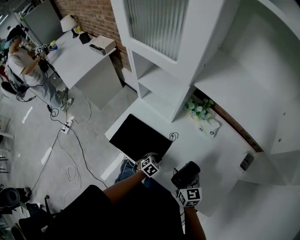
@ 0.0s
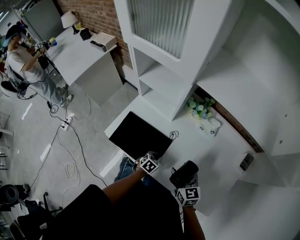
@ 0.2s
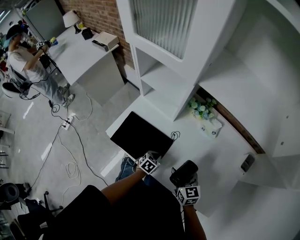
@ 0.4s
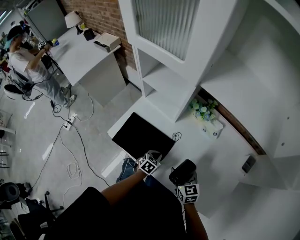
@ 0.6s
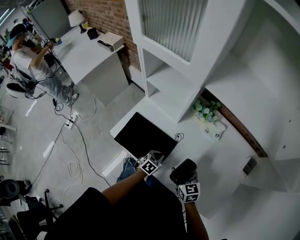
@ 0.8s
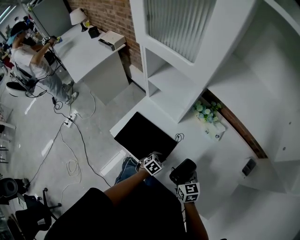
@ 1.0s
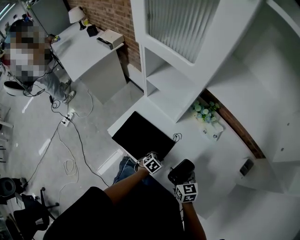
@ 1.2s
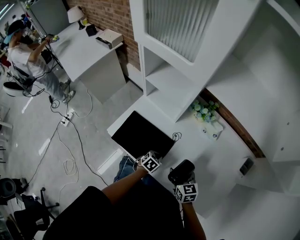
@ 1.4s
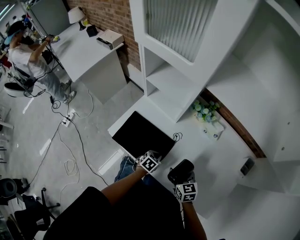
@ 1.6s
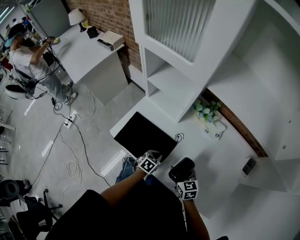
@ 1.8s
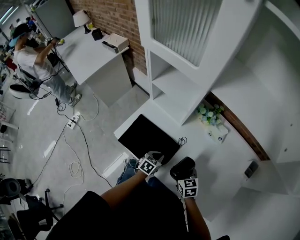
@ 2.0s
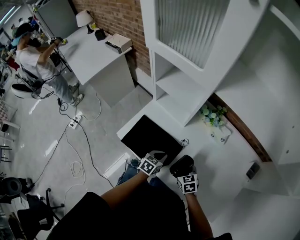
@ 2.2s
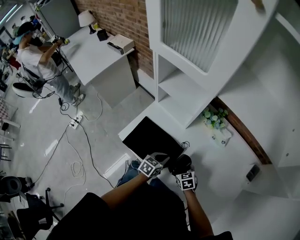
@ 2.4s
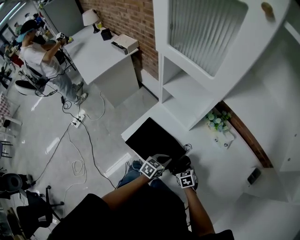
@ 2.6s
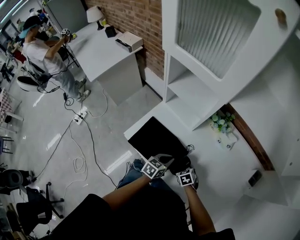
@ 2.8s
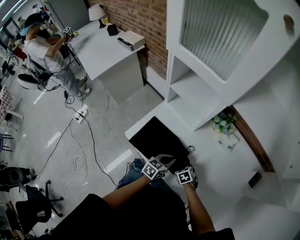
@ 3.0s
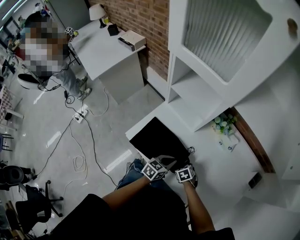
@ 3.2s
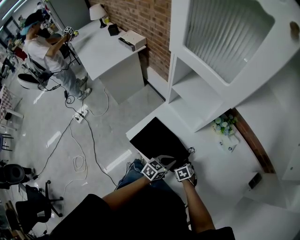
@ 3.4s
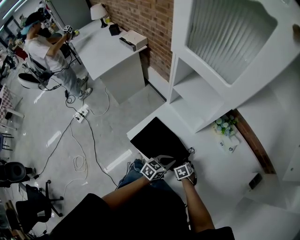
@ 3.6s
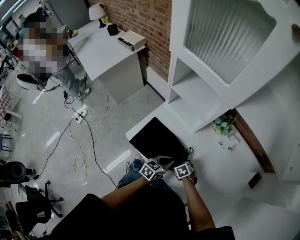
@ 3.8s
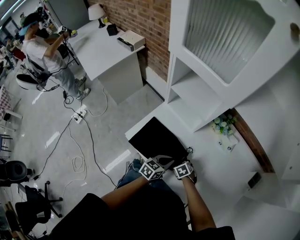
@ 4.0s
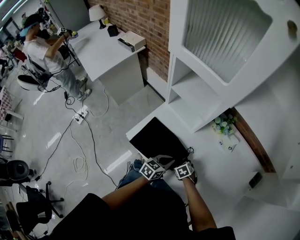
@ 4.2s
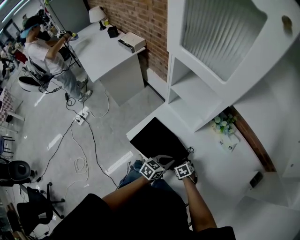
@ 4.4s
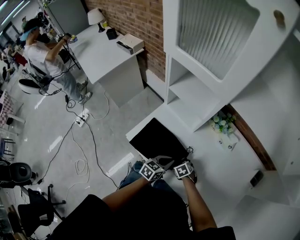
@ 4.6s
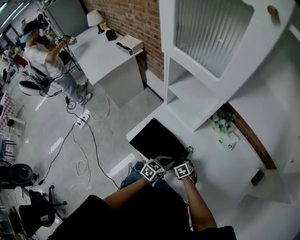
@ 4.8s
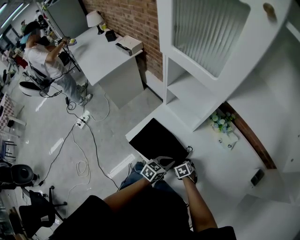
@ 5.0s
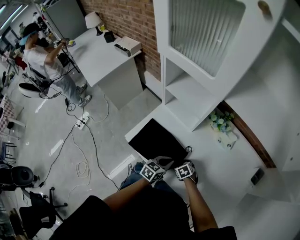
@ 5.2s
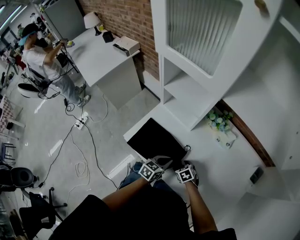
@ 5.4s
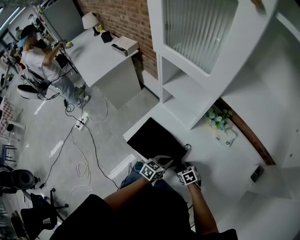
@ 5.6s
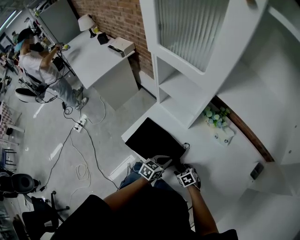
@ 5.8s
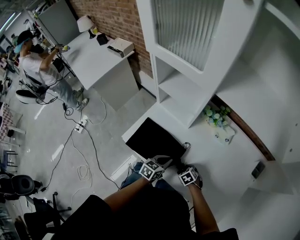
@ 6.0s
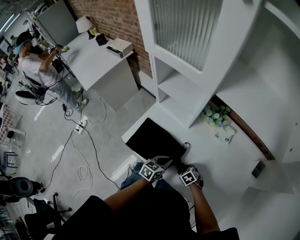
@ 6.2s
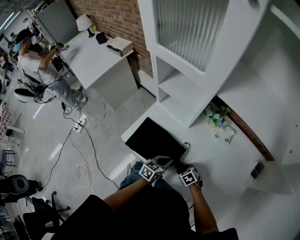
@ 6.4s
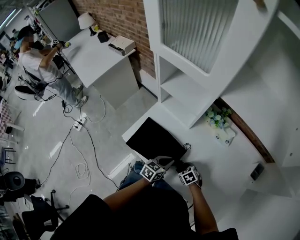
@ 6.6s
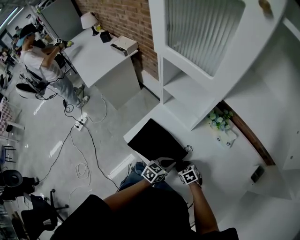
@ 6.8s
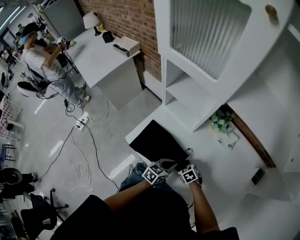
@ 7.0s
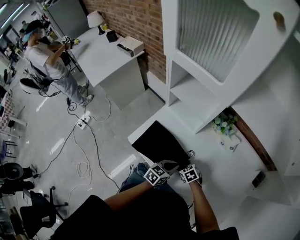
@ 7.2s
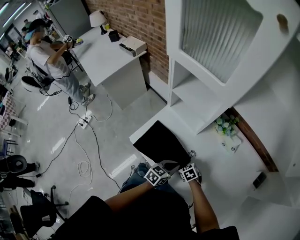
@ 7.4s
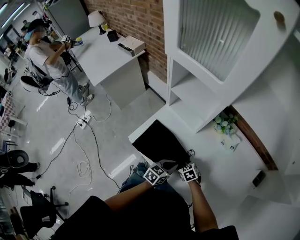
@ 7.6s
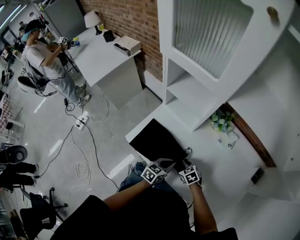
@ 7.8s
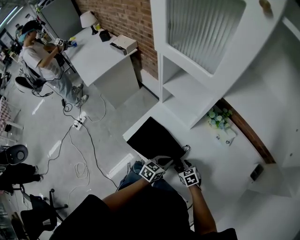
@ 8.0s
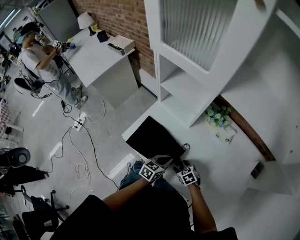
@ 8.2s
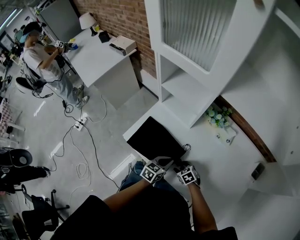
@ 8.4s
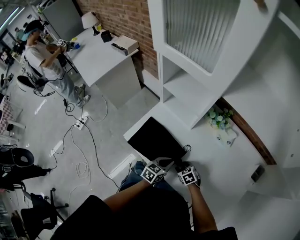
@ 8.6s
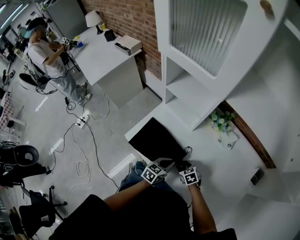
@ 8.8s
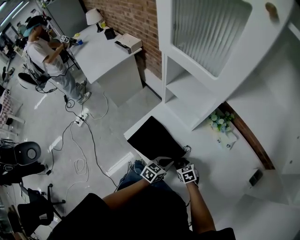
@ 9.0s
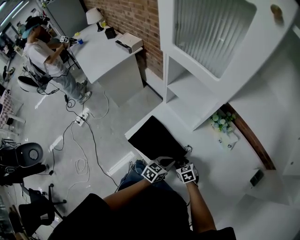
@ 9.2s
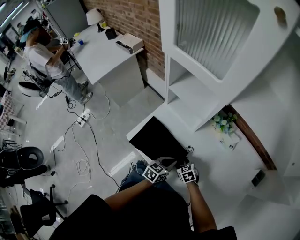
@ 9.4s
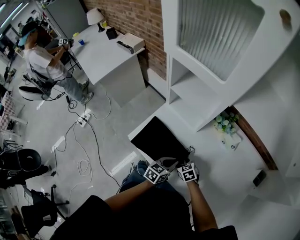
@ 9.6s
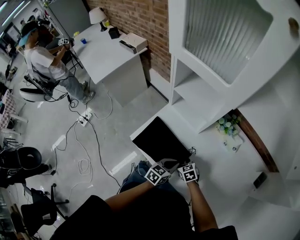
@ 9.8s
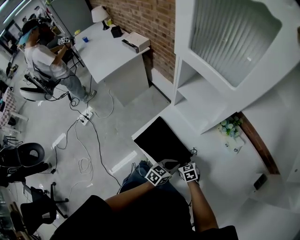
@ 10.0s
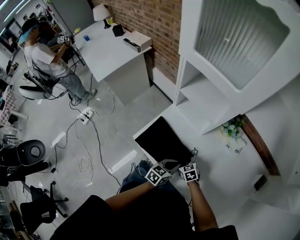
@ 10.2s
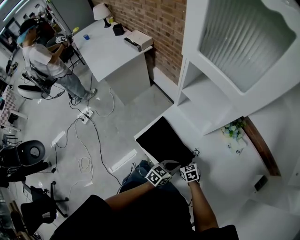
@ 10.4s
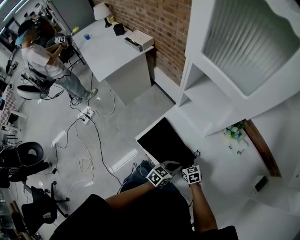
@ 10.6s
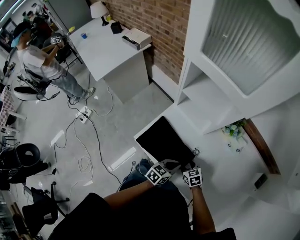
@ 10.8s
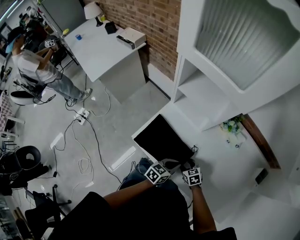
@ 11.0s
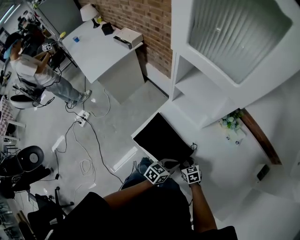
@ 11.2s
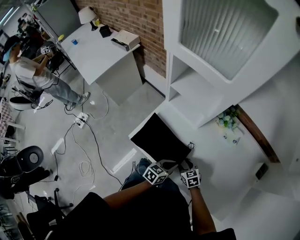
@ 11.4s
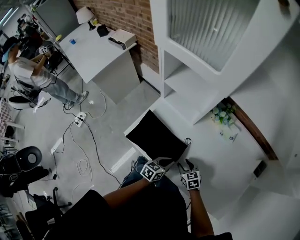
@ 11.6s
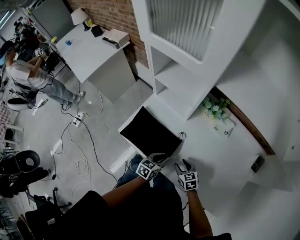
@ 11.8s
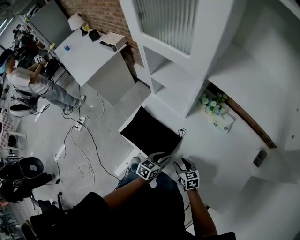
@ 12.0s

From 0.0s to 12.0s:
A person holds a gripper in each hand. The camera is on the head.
From 0.0s to 1.6s: The left gripper closes its fingers, while the right gripper travels downward by roughly 5 cm.
From 1.6s to 3.0s: The right gripper is displaced downward by roughly 15 cm, and tips its fingers downward by some 30 degrees. The left gripper goes some 10 cm upward, and changes its angle by some 30 degrees.
From 3.0s to 4.4s: The grippers move only a little.
From 4.4s to 6.0s: The right gripper travels backward and to the right by roughly 5 cm.
From 6.0s to 7.6s: The right gripper travels forward and to the left by approximately 10 cm.
From 7.6s to 9.0s: There are only small adjustments of the grippers.
From 9.0s to 10.4s: The right gripper heads to the left, covering about 5 cm.
From 10.4s to 12.0s: The left gripper moves about 5 cm, and opens its fingers. The right gripper heads to the right, backward and upward, covering about 15 cm, and changes its angle by roughly 20 degrees.

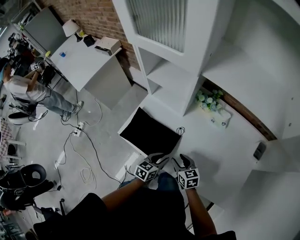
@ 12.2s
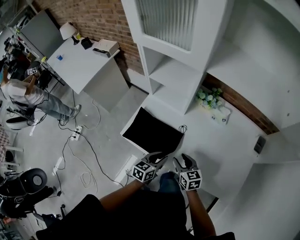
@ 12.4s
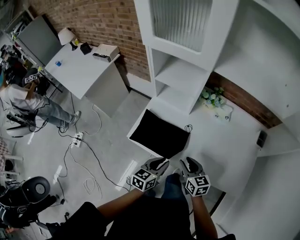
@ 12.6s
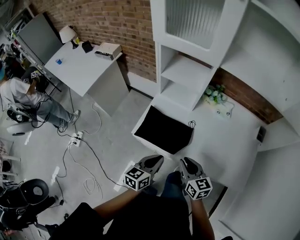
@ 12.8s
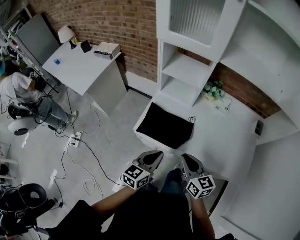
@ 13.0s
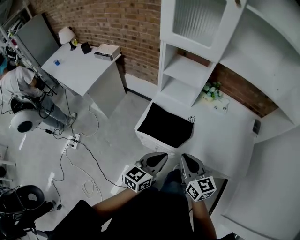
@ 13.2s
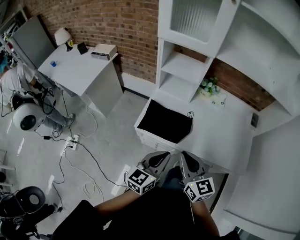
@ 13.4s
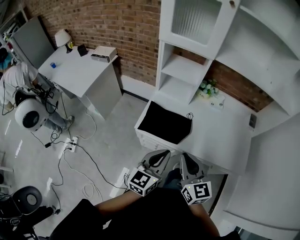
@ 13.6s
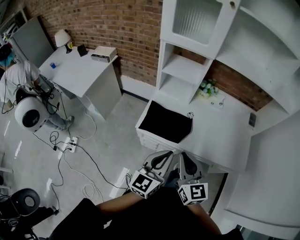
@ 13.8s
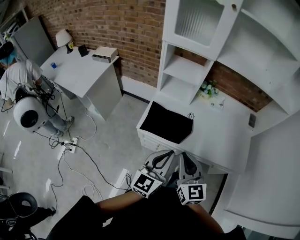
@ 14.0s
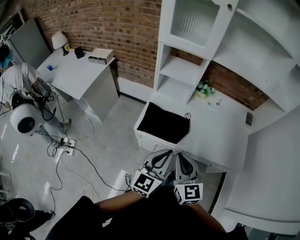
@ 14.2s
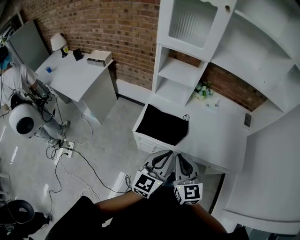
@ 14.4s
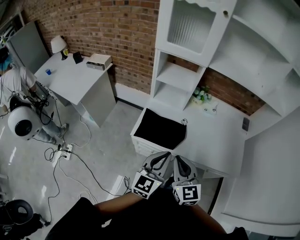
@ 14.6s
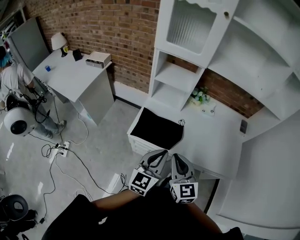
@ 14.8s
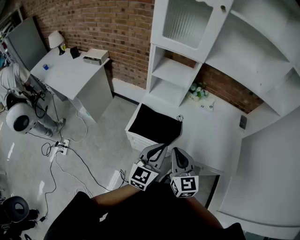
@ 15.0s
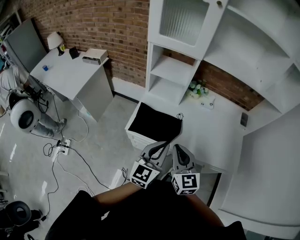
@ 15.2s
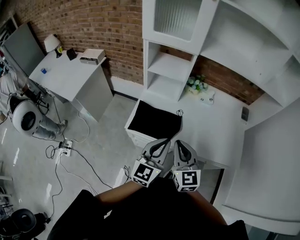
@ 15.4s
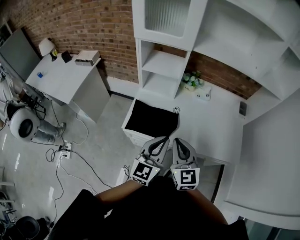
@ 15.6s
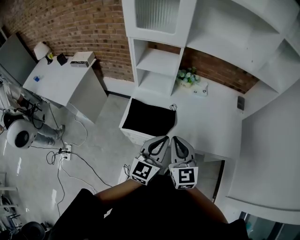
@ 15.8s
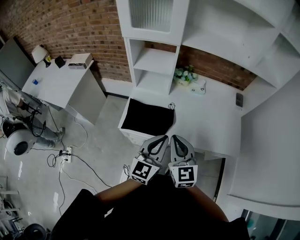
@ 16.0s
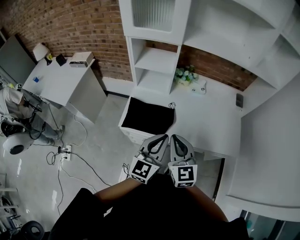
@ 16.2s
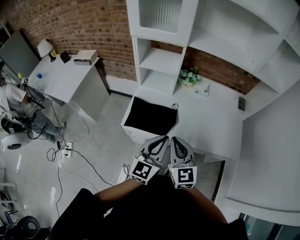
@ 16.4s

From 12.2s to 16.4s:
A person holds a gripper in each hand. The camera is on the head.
From 12.2s to 13.6s: The two grippers go about 35 cm upward, backward and to the left. The right gripper rotates roughly 40 degrees, and closes its fingers, while the left gripper swivels roughly 30 degrees, and closes up.
From 13.6s to 15.0s: There are only small adjustments of the grippers.
From 15.0s to 16.4s: The left gripper changes place by roughly 5 cm.

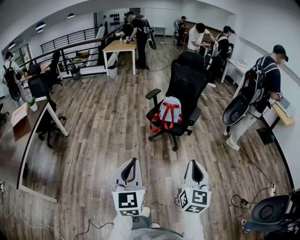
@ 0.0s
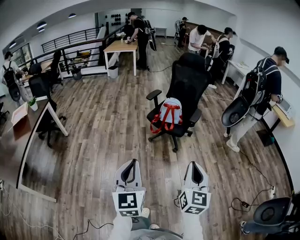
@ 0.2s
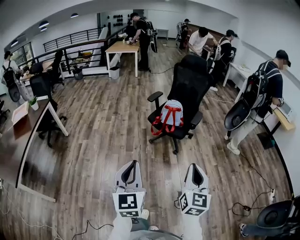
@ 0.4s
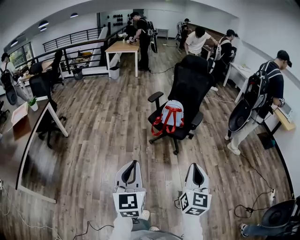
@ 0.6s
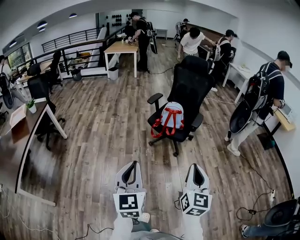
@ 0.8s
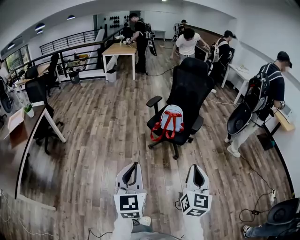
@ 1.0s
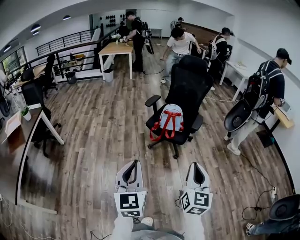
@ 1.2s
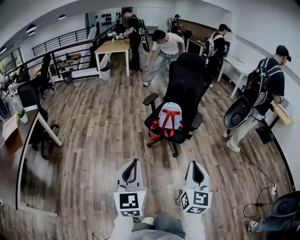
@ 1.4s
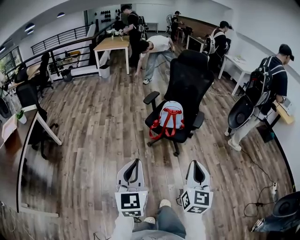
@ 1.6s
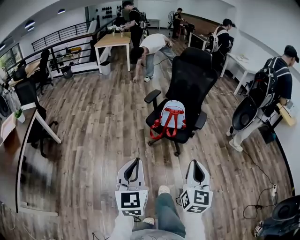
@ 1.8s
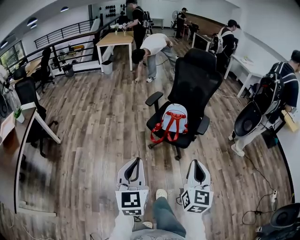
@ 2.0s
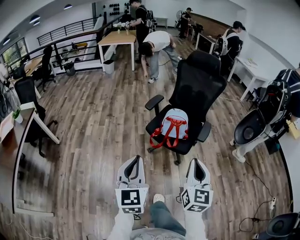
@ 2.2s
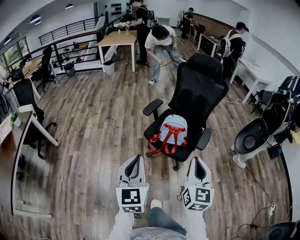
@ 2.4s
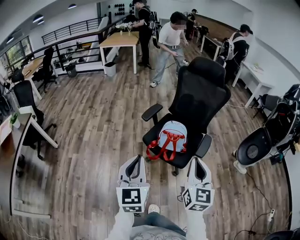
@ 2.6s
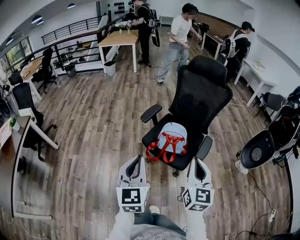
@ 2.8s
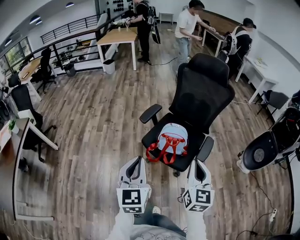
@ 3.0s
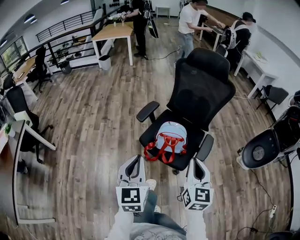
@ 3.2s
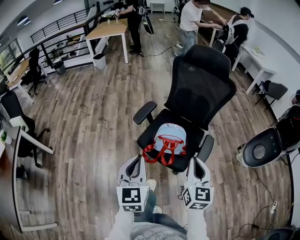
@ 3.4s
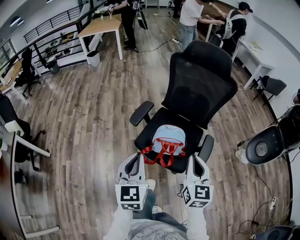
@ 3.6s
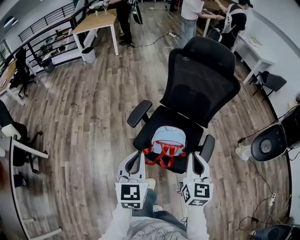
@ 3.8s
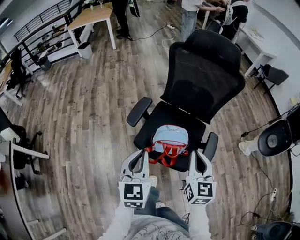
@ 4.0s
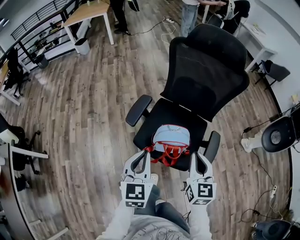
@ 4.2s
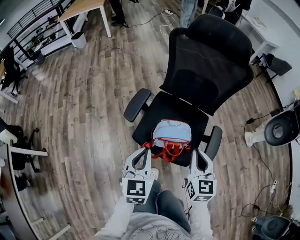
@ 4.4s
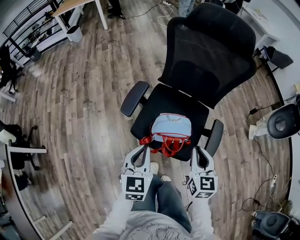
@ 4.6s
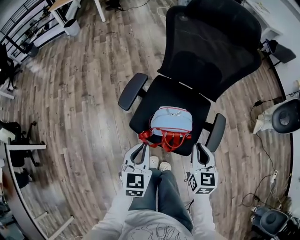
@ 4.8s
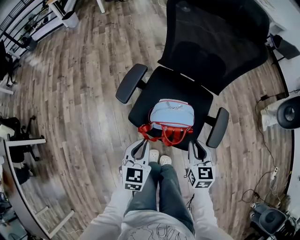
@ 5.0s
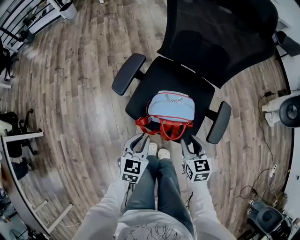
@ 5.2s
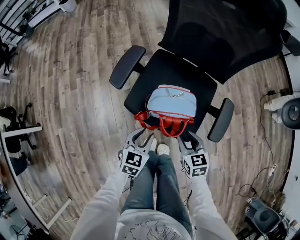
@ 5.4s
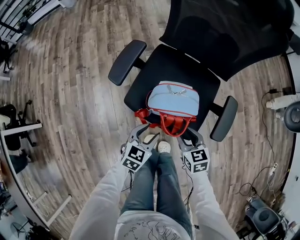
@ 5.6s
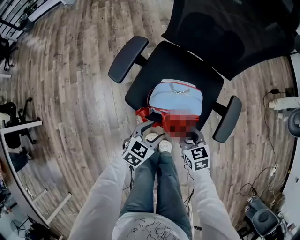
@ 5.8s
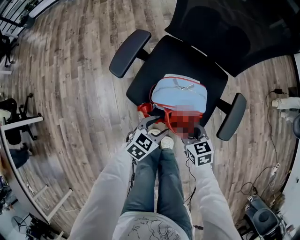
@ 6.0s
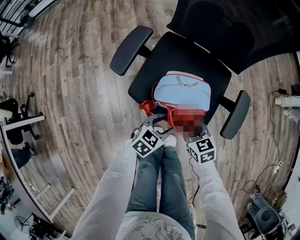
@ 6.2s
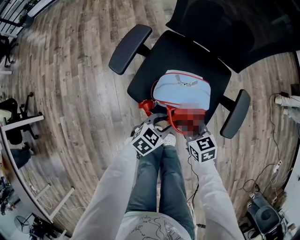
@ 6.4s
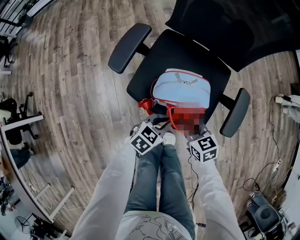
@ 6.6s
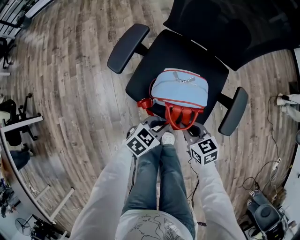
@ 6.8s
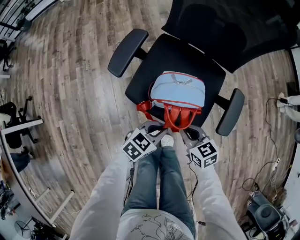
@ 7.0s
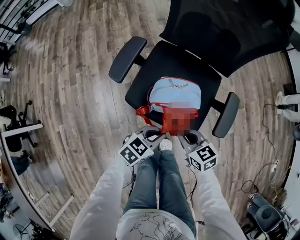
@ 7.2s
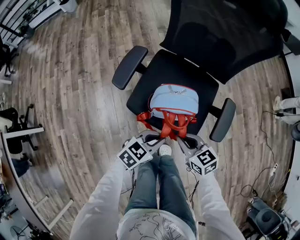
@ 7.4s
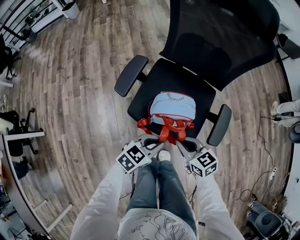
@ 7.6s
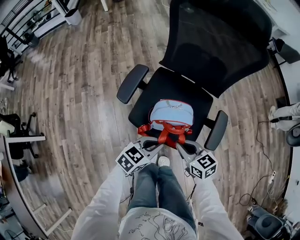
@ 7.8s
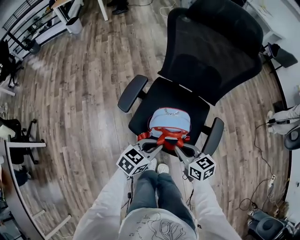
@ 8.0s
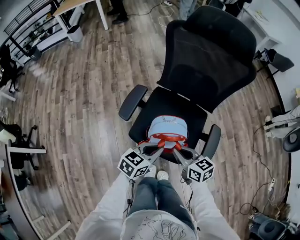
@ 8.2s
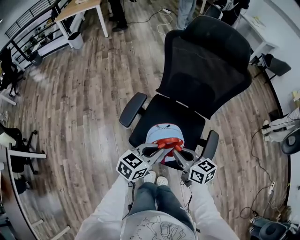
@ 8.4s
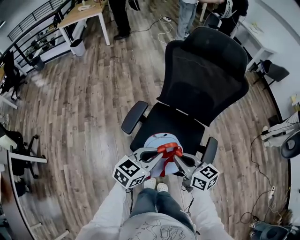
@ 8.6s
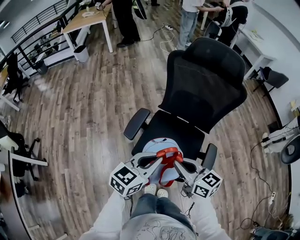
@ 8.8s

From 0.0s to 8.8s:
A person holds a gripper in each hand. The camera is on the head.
From 0.0s to 1.4s: Both grippers travel together forward, about 10 cm.
From 1.4s to 3.0s: The two grippers go approximately 40 cm forward.
From 3.0s to 4.4s: The grippers both shift forward and downward by roughly 25 cm. The left gripper swivels roughly 20 degrees.
From 4.4s to 5.8s: Both grippers travel together downward, roughly 30 cm. The left gripper swivels some 40 degrees, and opens. Meanwhile the right gripper changes its angle by about 40 degrees, and opens.
From 5.8s to 7.4s: Both grippers travel together upward, roughly 10 cm. The right gripper closes up, while the left gripper closes up.
From 7.4s to 8.8s: Both grippers move upward, about 25 cm. The right gripper swivels about 20 degrees. Meanwhile the left gripper swivels approximately 20 degrees.
